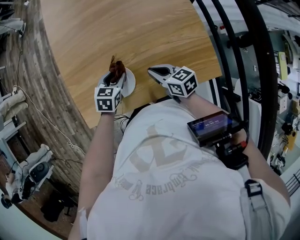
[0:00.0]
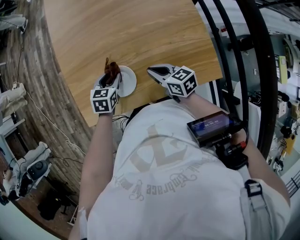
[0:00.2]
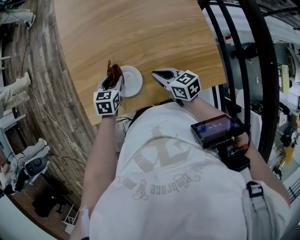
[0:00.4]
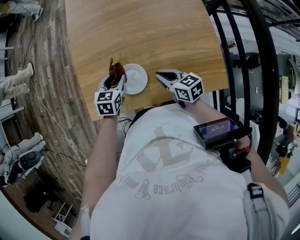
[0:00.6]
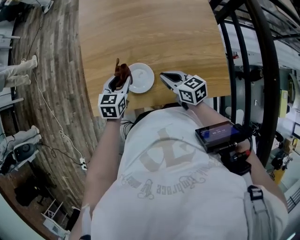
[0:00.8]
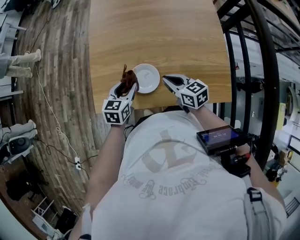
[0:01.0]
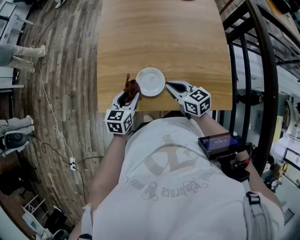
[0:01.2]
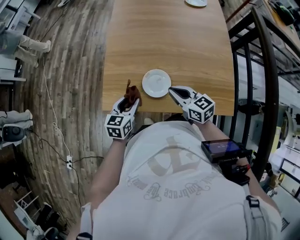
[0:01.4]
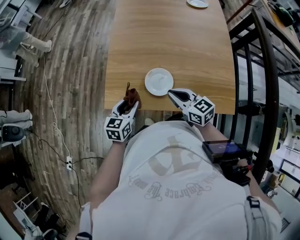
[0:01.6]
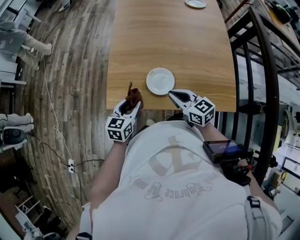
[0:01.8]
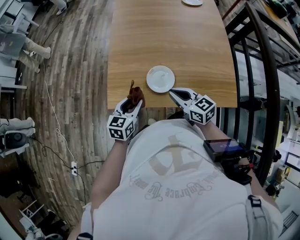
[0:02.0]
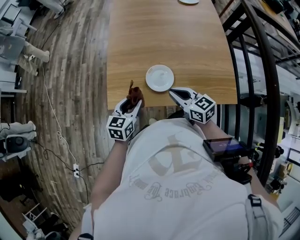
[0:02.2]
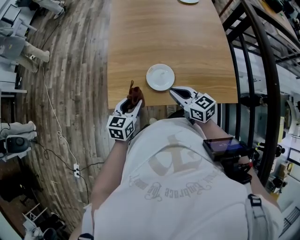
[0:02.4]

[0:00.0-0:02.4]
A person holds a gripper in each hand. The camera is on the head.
0:00.0 to 0:01.2: The right gripper ends up some 5 cm from where it was. Meanwhile the left gripper moves to the left, backward and upward, approximately 10 cm, and changes its angle by approximately 30 degrees.
0:01.2 to 0:02.4: Both grippers travel together to the left, approximately 5 cm.

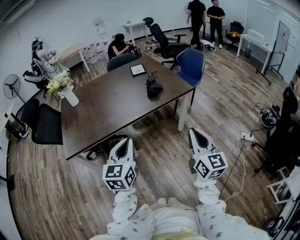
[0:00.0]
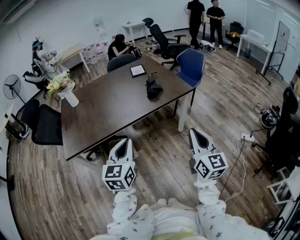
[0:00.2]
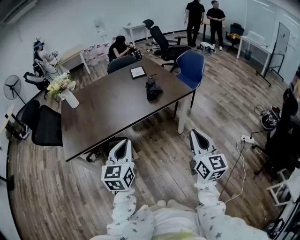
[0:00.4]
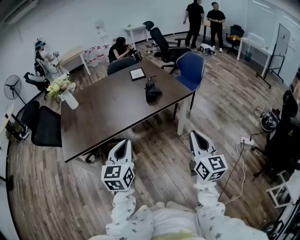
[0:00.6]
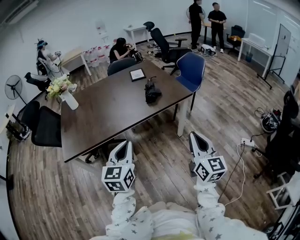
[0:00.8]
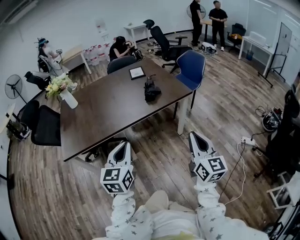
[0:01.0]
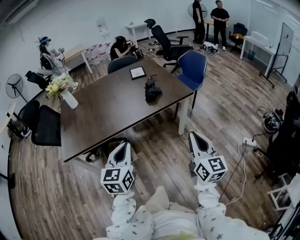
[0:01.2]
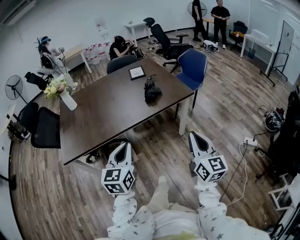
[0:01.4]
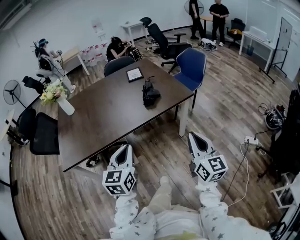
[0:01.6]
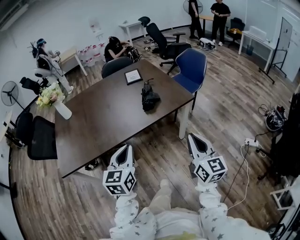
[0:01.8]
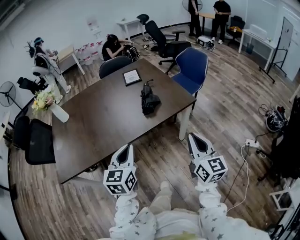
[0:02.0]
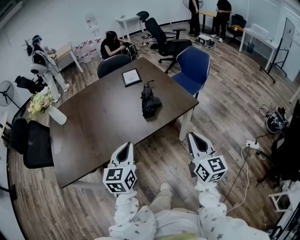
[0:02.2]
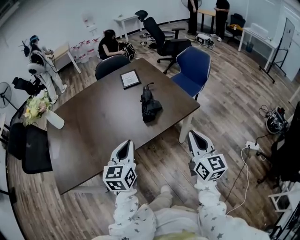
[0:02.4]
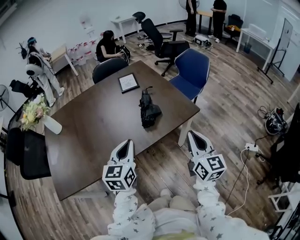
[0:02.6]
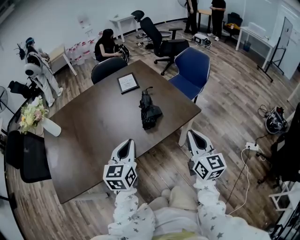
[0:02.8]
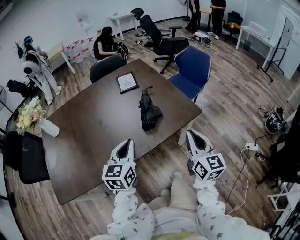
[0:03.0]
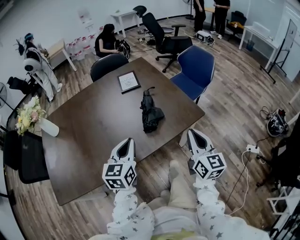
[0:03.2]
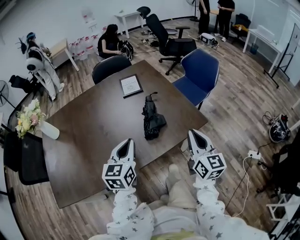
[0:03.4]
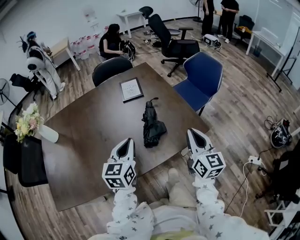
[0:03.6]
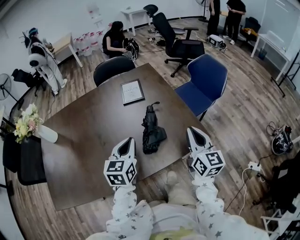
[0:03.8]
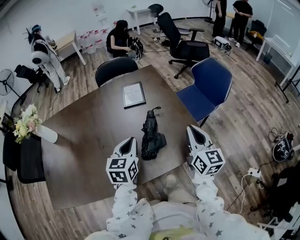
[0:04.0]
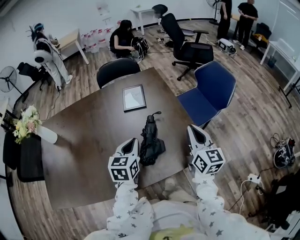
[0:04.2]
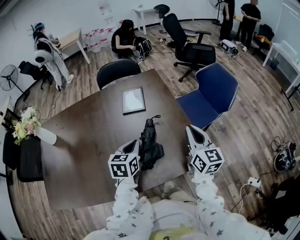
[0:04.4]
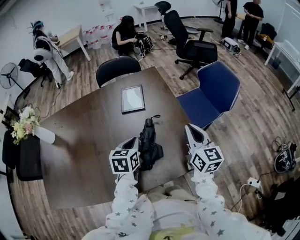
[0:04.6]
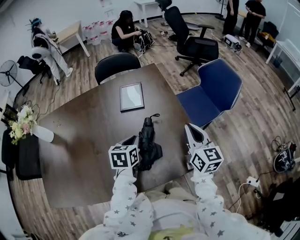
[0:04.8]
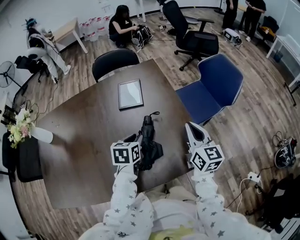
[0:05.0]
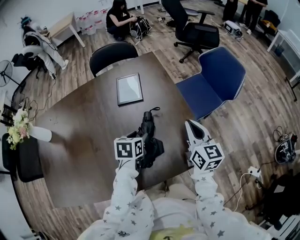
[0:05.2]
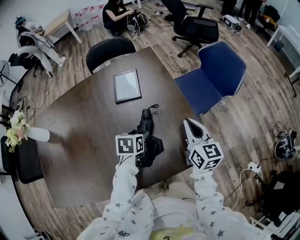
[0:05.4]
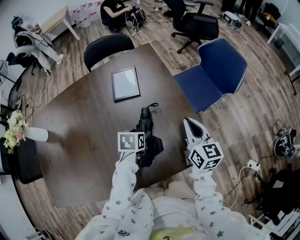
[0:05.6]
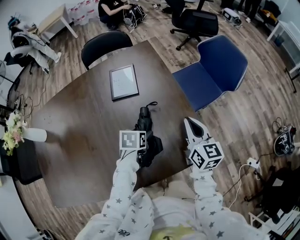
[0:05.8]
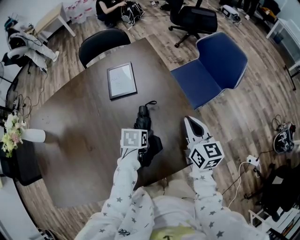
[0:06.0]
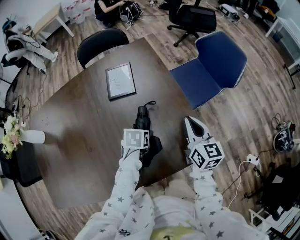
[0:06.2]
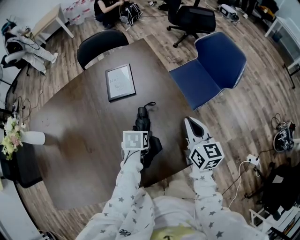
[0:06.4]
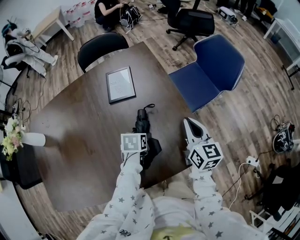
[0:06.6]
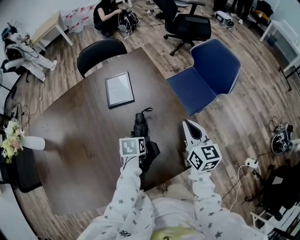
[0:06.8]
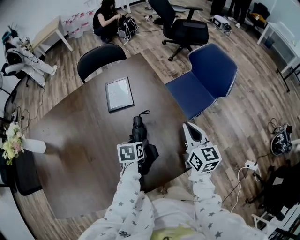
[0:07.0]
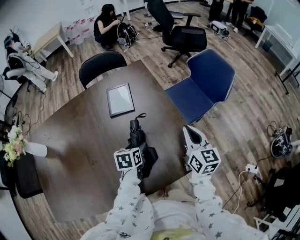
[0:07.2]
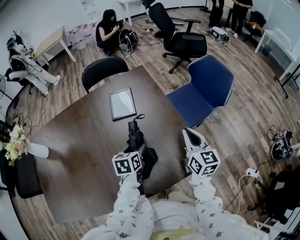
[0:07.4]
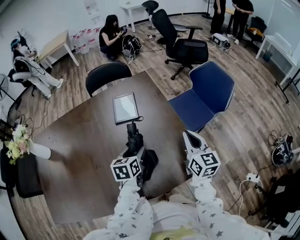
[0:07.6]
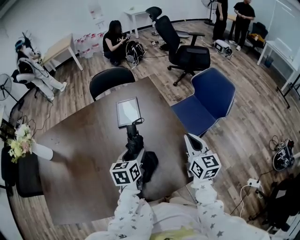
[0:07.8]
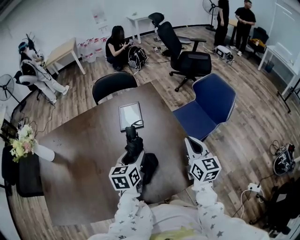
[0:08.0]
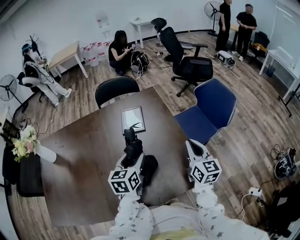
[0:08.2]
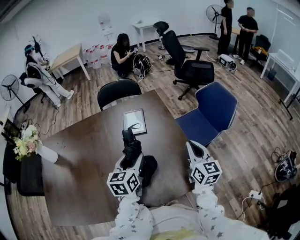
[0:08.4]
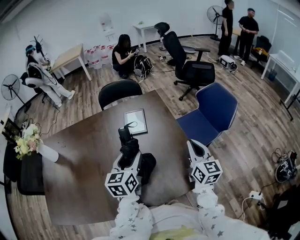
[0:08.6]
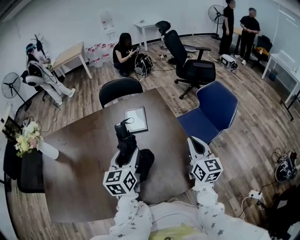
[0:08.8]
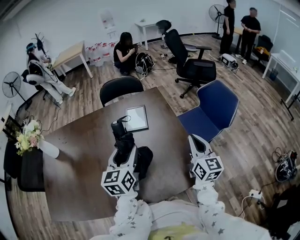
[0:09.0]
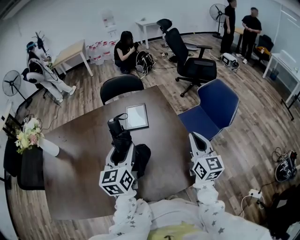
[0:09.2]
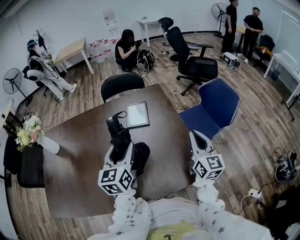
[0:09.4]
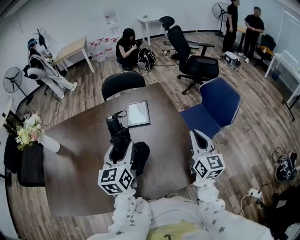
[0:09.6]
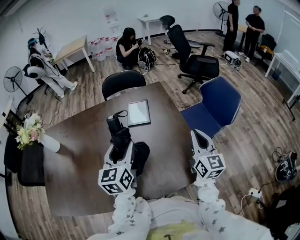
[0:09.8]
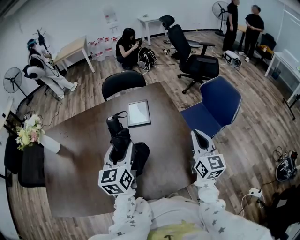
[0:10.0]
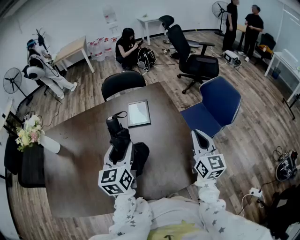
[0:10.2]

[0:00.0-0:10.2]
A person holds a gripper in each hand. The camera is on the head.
0:00.0 to 0:01.4: The right gripper changes place by roughly 5 cm.
0:01.4 to 0:03.0: Both grippers travel together forward, approximately 30 cm.
0:03.0 to 0:04.4: Both grippers move forward, approximately 25 cm. The left gripper changes its angle by about 20 degrees.
0:04.4 to 0:05.8: The left gripper is displaced downward by roughly 15 cm, changes its angle by roughly 30 degrees, and opens. The right gripper goes some 5 cm downward.
0:05.8 to 0:07.2: There are only small adjustments of the grippers.
0:07.2 to 0:08.8: The left gripper travels upward by about 20 cm, and points its fingers approximately 40 degrees further upward. The right gripper heads upward, covering approximately 5 cm.
0:08.8 to 0:10.2: The grippers move only a little.

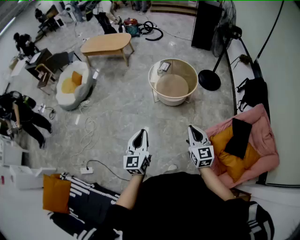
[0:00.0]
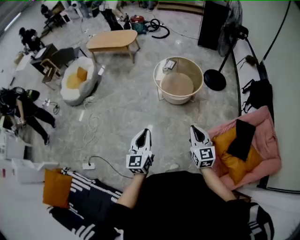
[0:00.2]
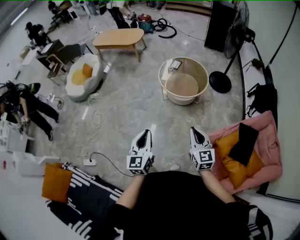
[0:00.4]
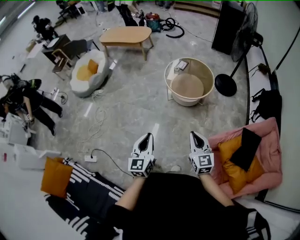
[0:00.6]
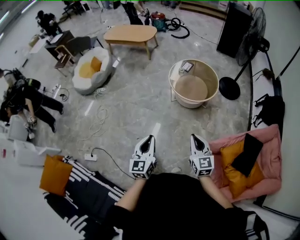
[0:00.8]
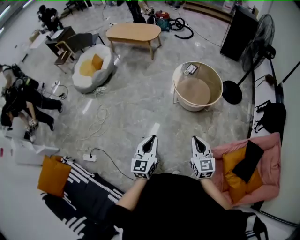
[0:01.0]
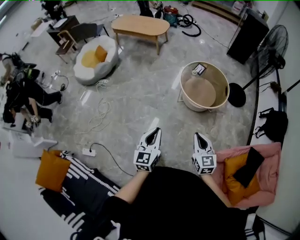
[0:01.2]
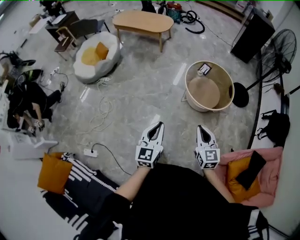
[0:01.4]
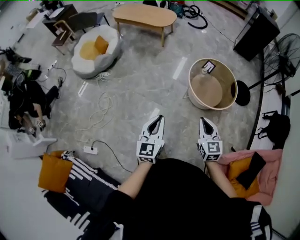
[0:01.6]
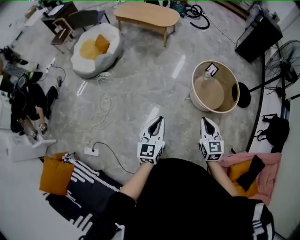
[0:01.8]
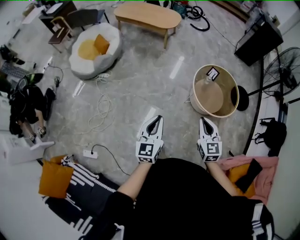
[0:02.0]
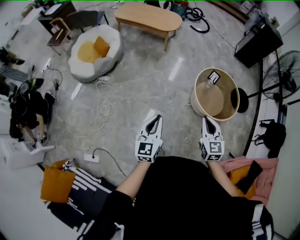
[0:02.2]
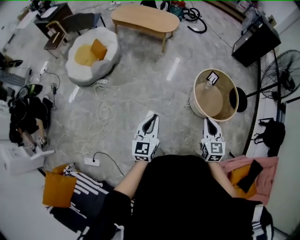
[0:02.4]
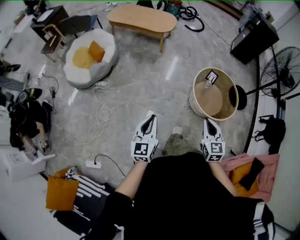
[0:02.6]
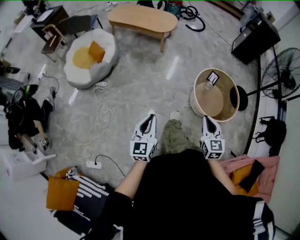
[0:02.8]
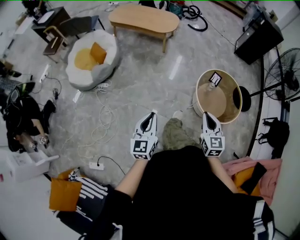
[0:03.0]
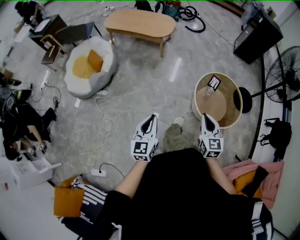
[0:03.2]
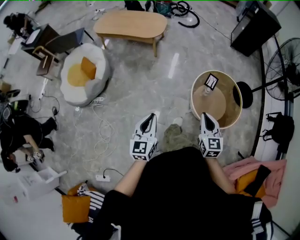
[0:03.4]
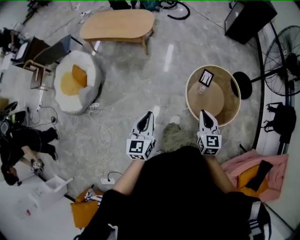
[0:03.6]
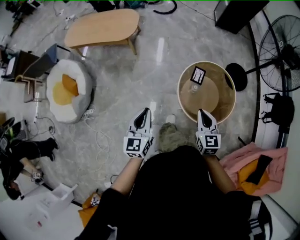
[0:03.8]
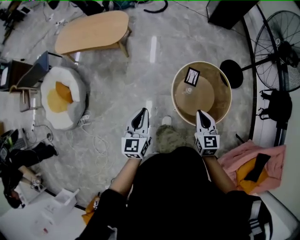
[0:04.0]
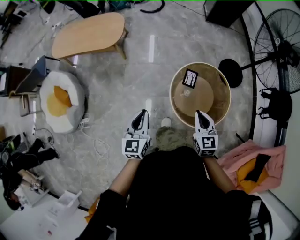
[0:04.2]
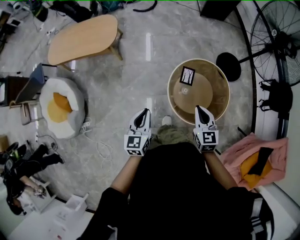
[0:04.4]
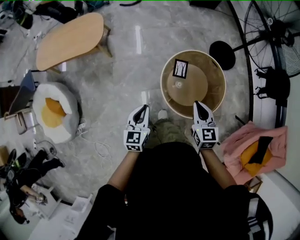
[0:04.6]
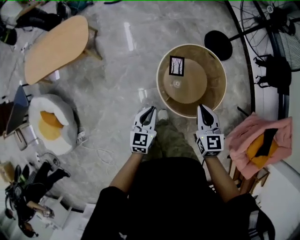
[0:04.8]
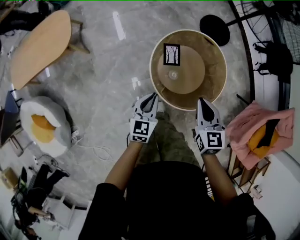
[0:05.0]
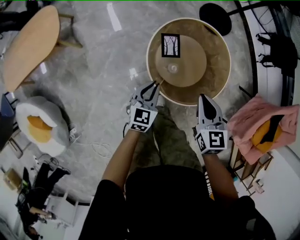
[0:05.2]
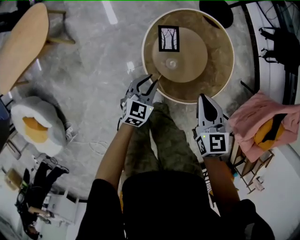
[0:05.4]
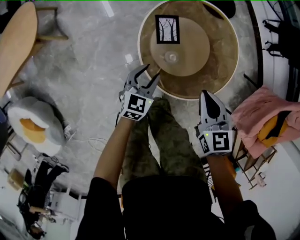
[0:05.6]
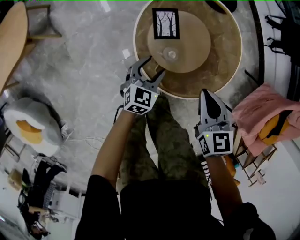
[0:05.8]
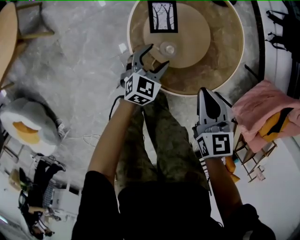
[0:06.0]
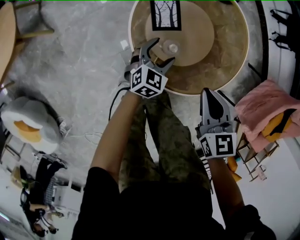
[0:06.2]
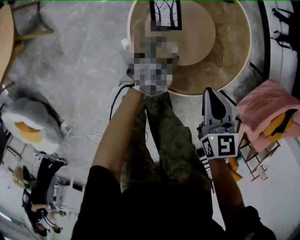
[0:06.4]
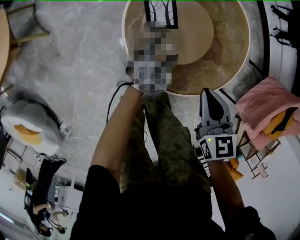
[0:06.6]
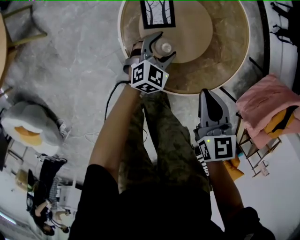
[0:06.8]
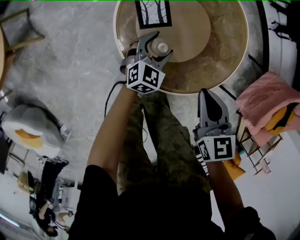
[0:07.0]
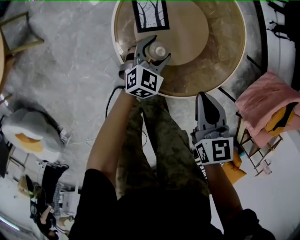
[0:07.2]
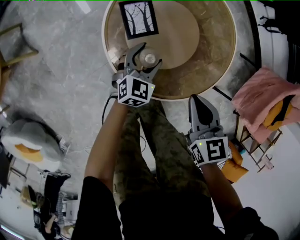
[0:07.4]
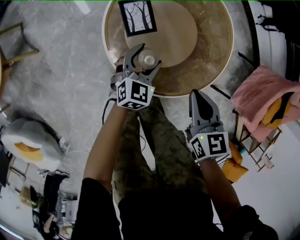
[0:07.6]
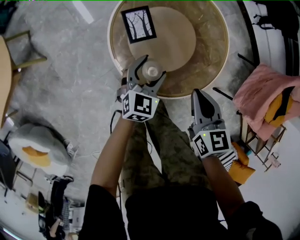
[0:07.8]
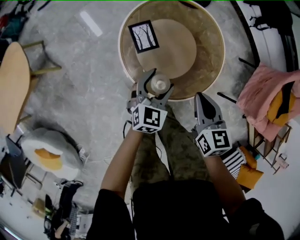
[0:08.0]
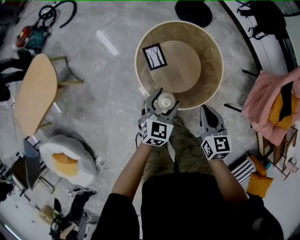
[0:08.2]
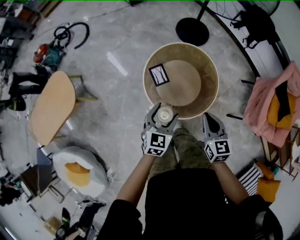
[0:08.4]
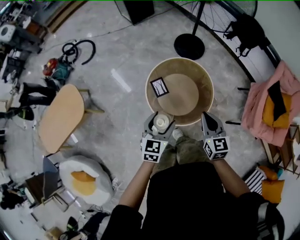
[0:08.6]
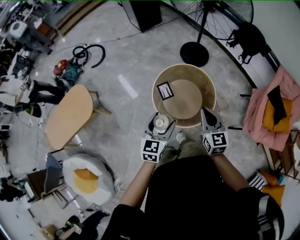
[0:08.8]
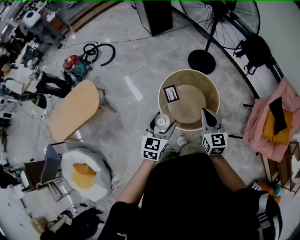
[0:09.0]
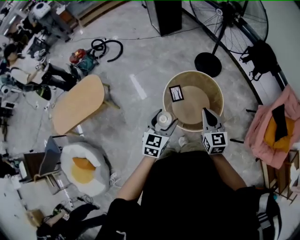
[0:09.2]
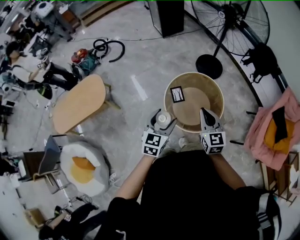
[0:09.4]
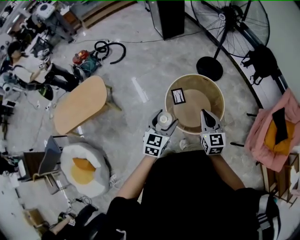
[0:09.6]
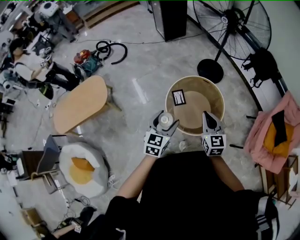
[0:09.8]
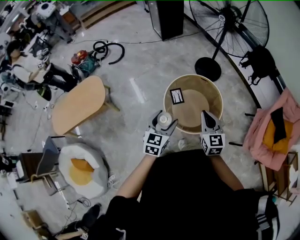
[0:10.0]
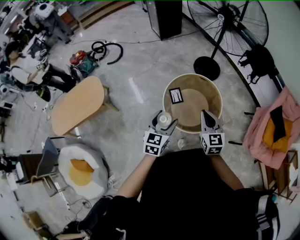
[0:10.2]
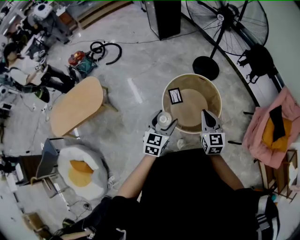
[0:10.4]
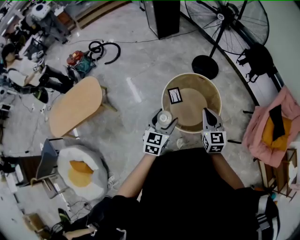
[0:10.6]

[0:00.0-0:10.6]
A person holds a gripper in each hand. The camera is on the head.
0:00.0 to 0:01.6: Both grippers travel together forward and to the left, approximately 30 cm.
0:01.6 to 0:03.0: The two grippers go some 25 cm forward and to the left.
0:03.0 to 0:04.6: The two grippers travel together, roughly 50 cm. The right gripper rotates approximately 30 degrees. The left gripper rotates some 40 degrees.
0:04.6 to 0:06.0: The two grippers go approximately 35 cm downward. The left gripper swivels about 40 degrees, and opens up.
0:06.0 to 0:07.6: The right gripper shifts by about 5 cm.
0:07.6 to 0:09.0: The grippers both shift upward by roughly 50 cm. The right gripper rotates roughly 30 degrees.
0:09.0 to 0:10.6: There are only small adjustments of the grippers.
